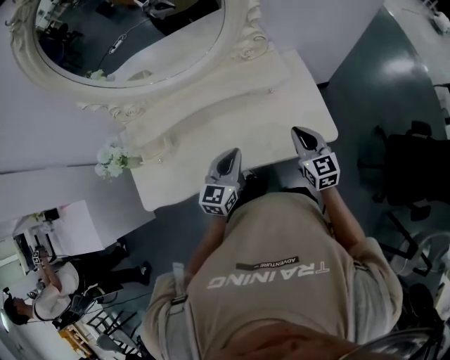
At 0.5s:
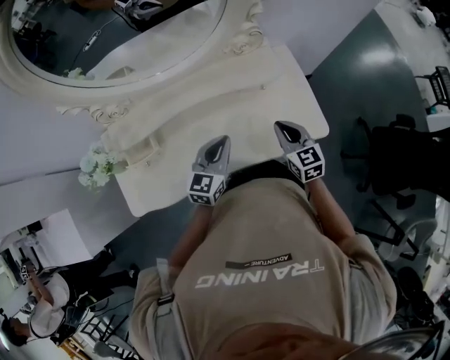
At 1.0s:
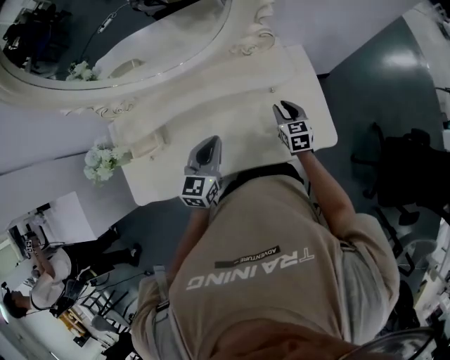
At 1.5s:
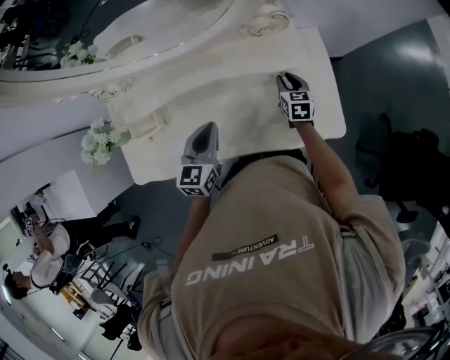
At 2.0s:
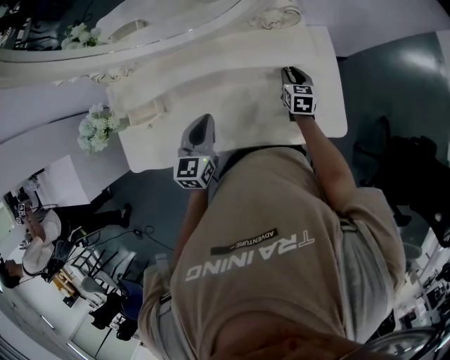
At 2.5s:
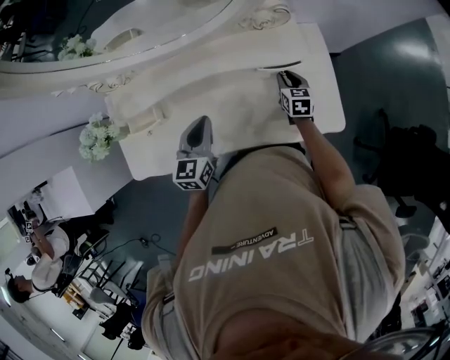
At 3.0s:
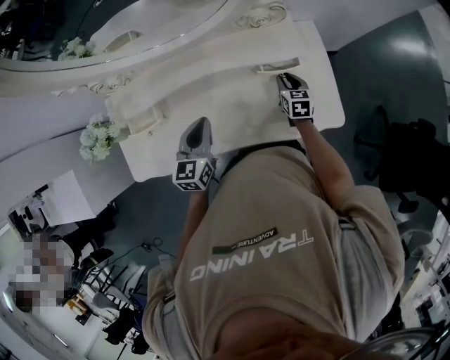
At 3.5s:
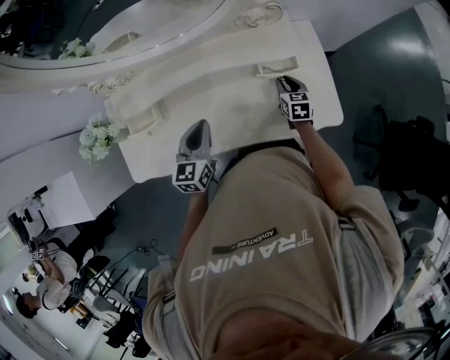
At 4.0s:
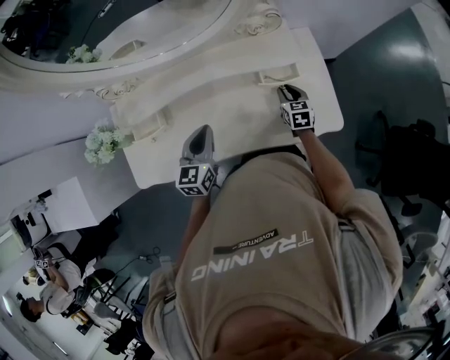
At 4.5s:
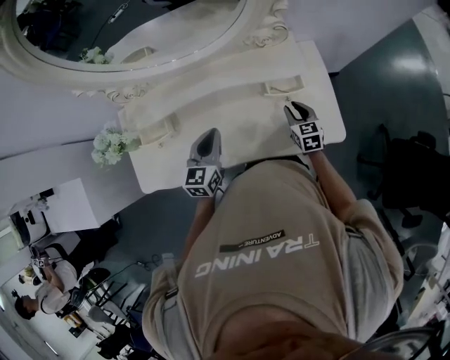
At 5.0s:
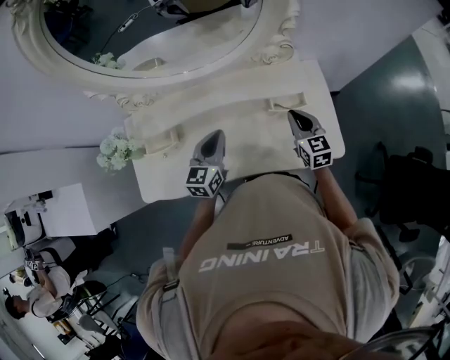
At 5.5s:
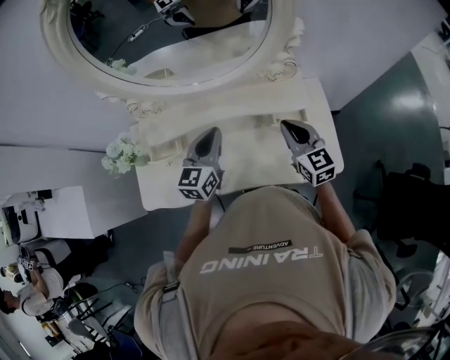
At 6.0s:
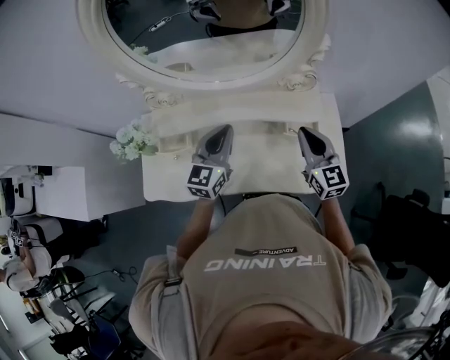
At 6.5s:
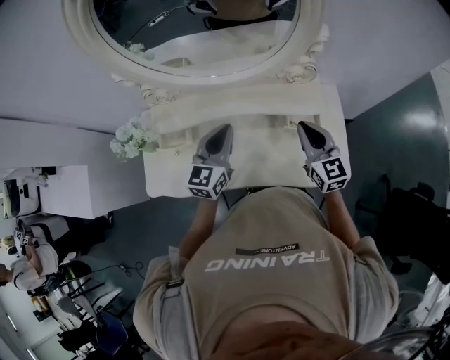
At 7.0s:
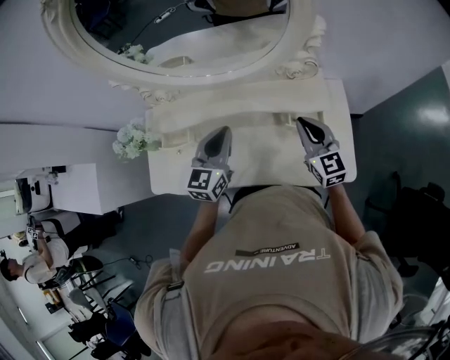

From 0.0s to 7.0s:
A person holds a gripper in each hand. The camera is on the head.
From 0.0s to 2.0s: The left gripper travels to the left and forward by some 10 cm, while the right gripper shifts about 30 cm forward and downward, swivels about 20 degrees, and opens up.
From 2.0s to 3.5s: The right gripper shifts approximately 5 cm backward.
From 3.5s to 5.0s: The left gripper moves approximately 5 cm. The right gripper moves upward, roughly 15 cm, rotates roughly 20 degrees, and closes up.
From 5.0s to 7.0s: Both grippers travel together upward, about 5 cm.

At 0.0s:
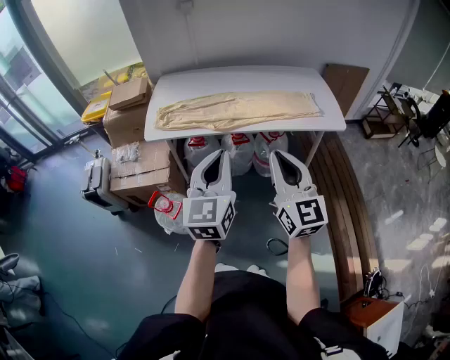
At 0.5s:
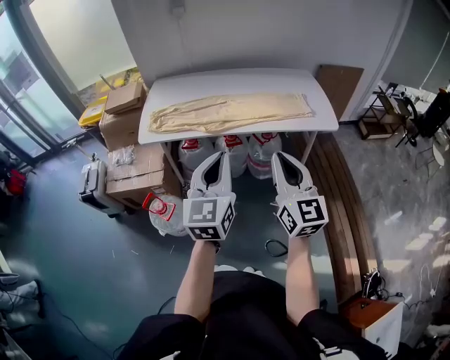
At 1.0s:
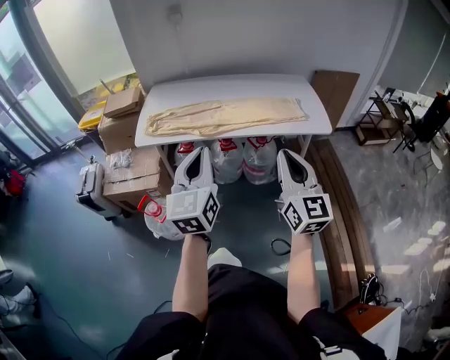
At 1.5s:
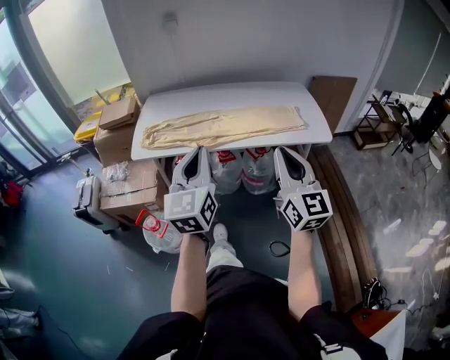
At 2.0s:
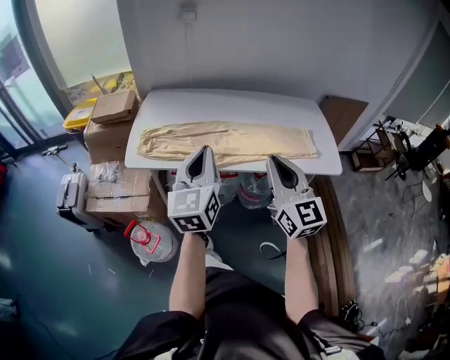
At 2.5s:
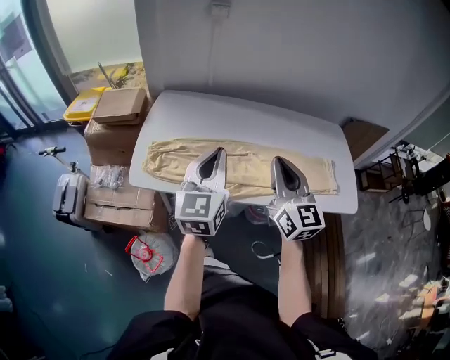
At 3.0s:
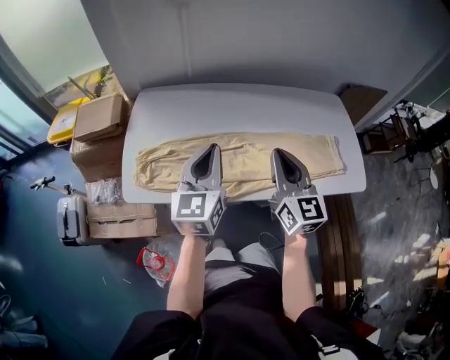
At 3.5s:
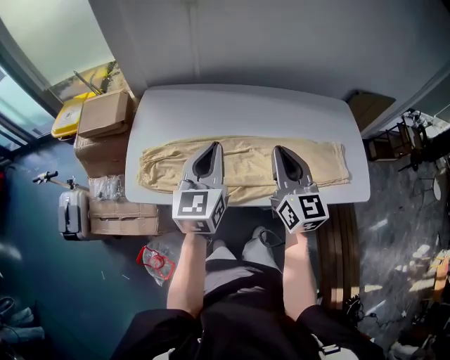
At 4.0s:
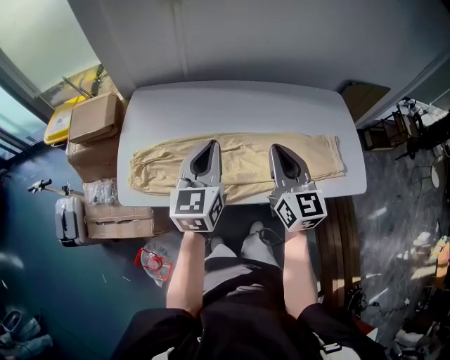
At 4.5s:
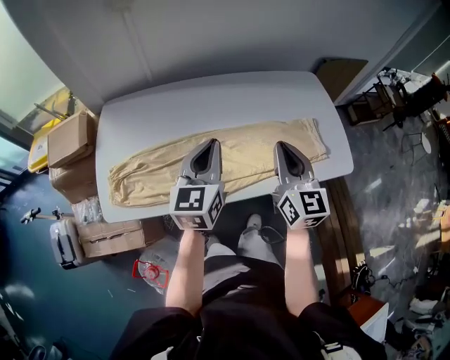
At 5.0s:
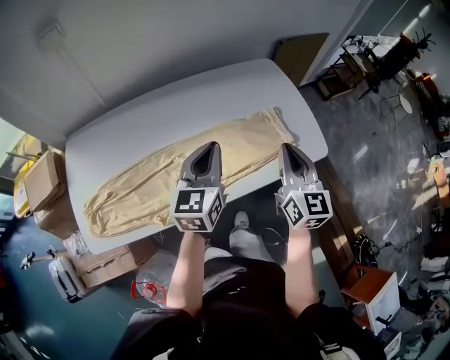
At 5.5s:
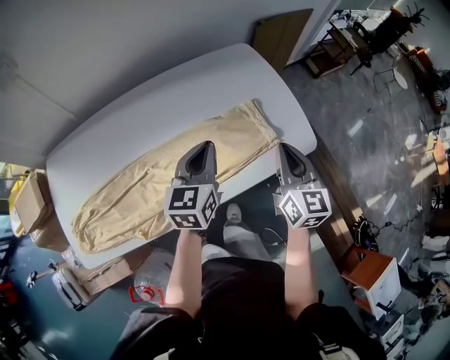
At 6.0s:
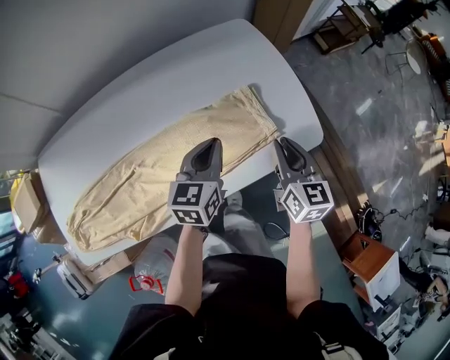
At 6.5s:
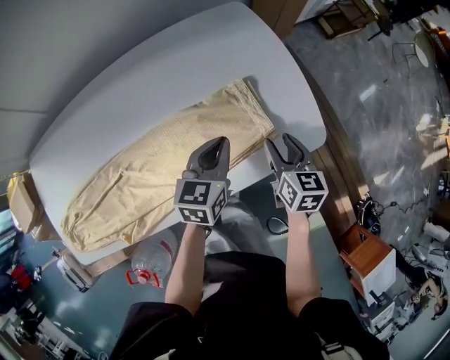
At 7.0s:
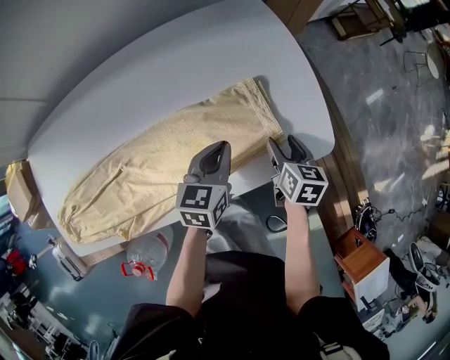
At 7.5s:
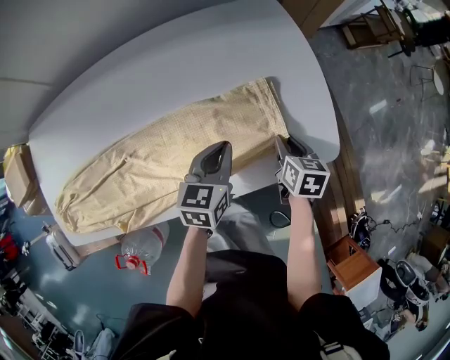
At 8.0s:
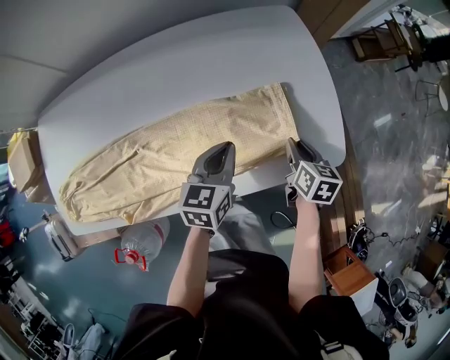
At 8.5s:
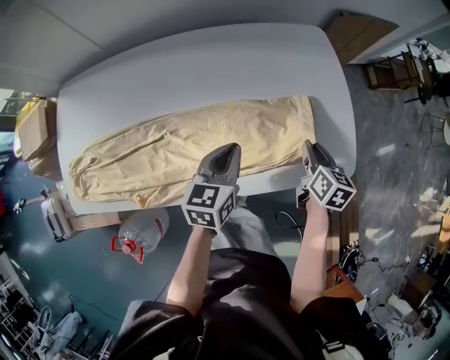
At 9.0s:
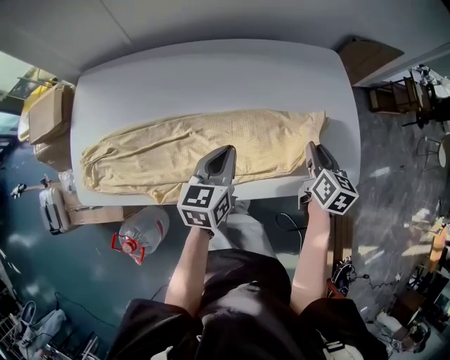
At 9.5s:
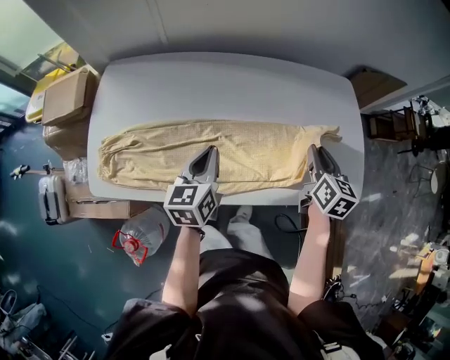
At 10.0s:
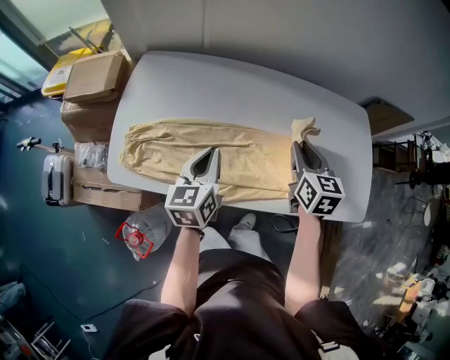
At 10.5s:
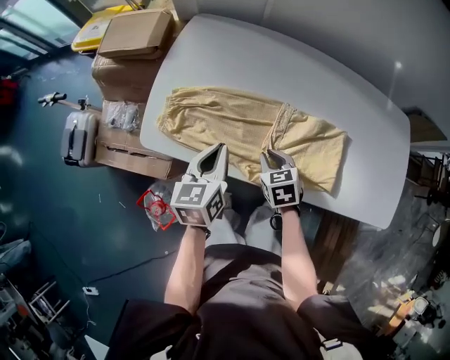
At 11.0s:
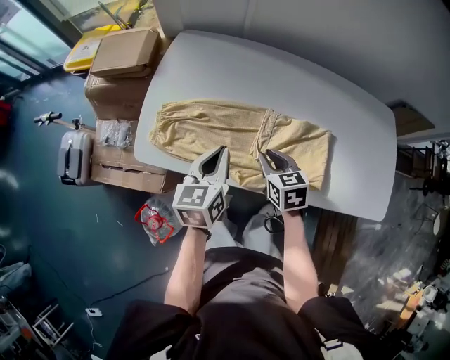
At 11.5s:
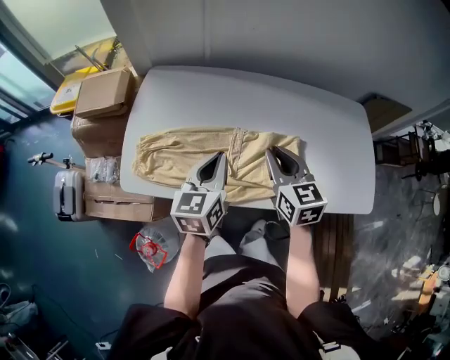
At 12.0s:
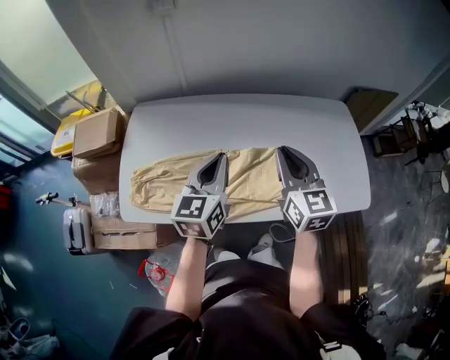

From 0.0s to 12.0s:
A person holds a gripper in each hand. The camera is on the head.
From 0.0s to 2.0s: The grippers both shift forward by approximately 20 cm.
From 2.0s to 4.0s: Both grippers move forward, roughly 25 cm.
From 4.0s to 6.0s: The left gripper shifts by approximately 40 cm, and turns by about 40 degrees. The right gripper ends up about 40 cm from where it was, and changes its angle by some 30 degrees.
From 6.0s to 8.0s: The left gripper is displaced downward by some 5 cm, while the right gripper travels downward by about 15 cm, swivels approximately 30 degrees, and opens, then closes again.
From 8.0s to 10.0s: The left gripper goes approximately 40 cm to the left, and turns by roughly 30 degrees; the right gripper goes some 40 cm to the left and upward, and rotates roughly 40 degrees.
From 10.0s to 12.0s: The left gripper goes roughly 15 cm upward and to the right. Meanwhile the right gripper moves upward and backward, approximately 10 cm.

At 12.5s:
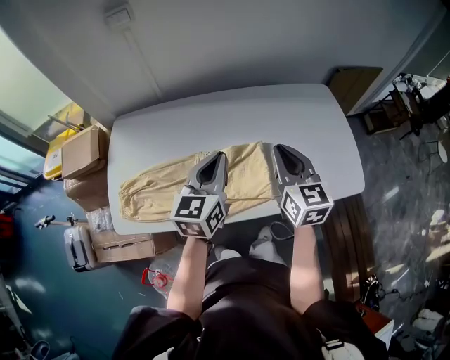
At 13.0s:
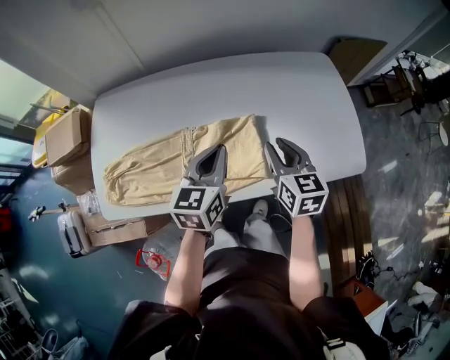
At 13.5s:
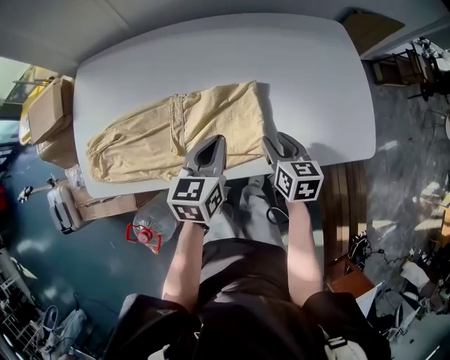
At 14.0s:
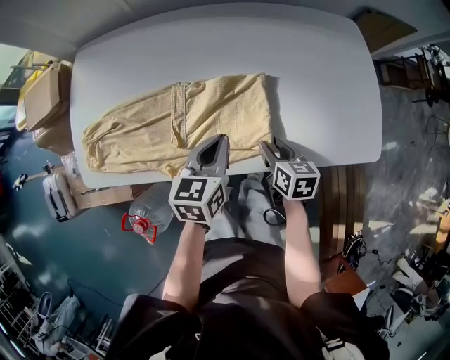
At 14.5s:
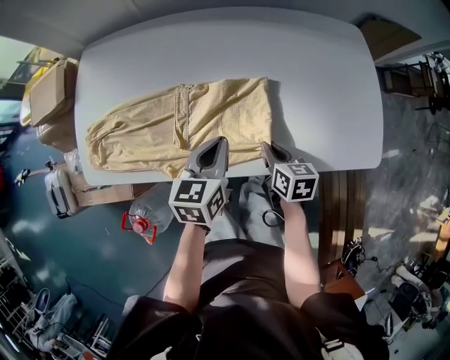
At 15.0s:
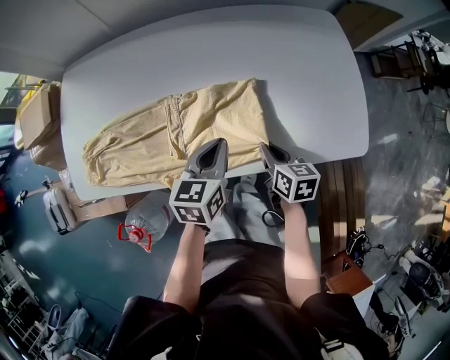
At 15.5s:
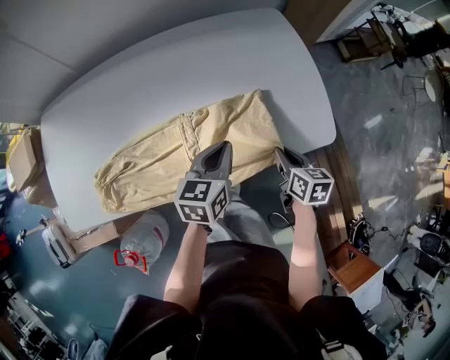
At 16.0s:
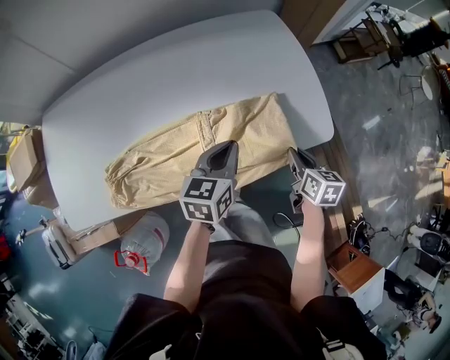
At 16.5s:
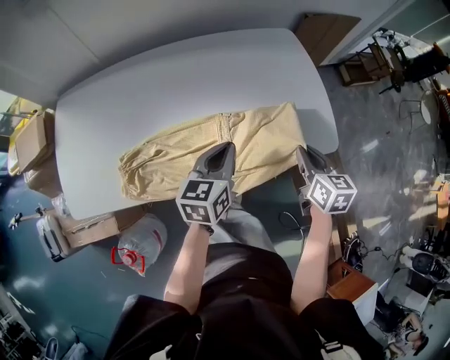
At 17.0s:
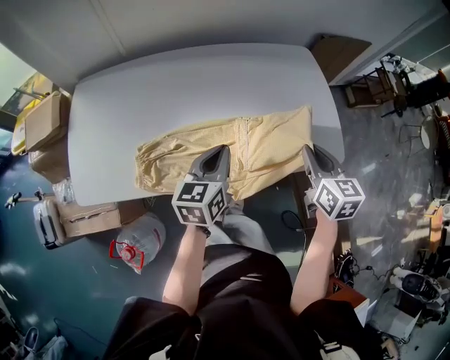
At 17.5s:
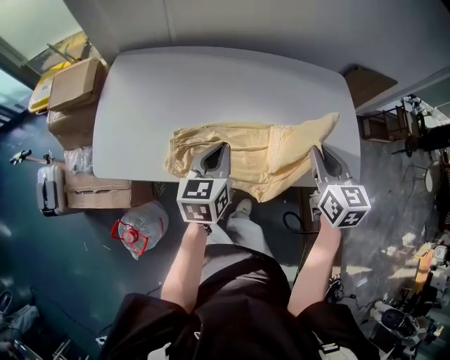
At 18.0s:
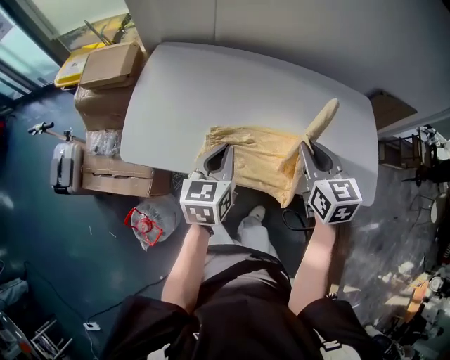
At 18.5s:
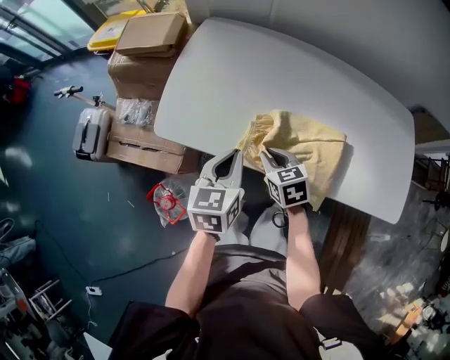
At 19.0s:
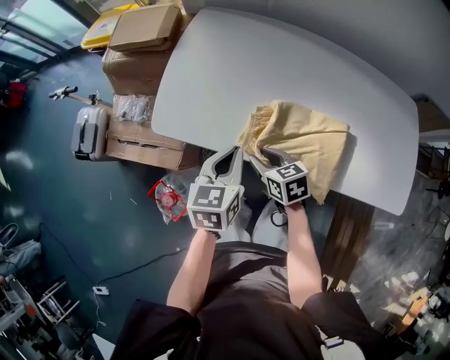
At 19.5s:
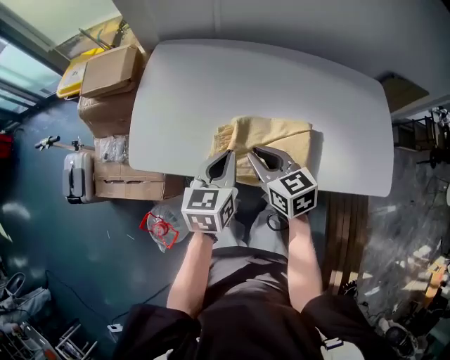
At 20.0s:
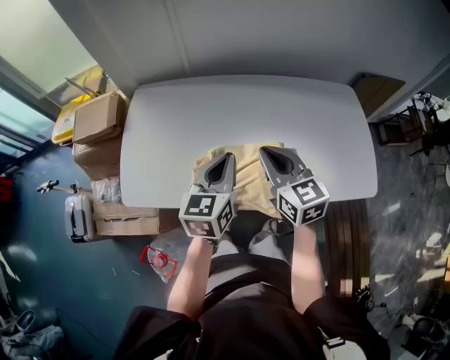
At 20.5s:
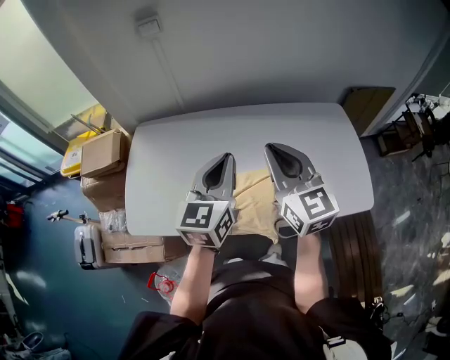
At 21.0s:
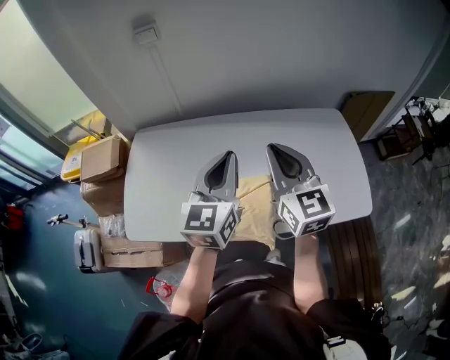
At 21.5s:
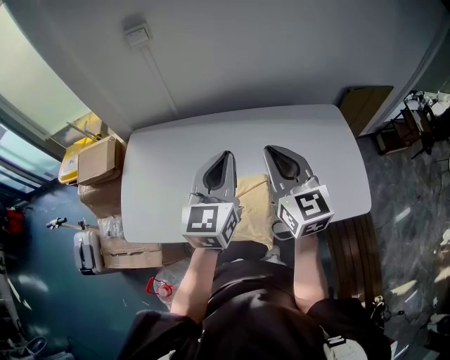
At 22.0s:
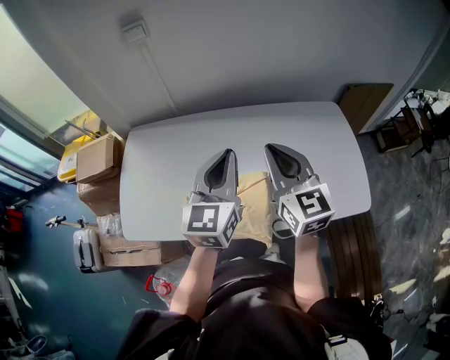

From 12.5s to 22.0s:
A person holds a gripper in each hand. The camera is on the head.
From 12.5s to 14.5s: The left gripper travels downward by roughly 20 cm, and turns by approximately 20 degrees. The right gripper shifts some 30 cm downward, angles its fingers downward, by about 30 degrees, and opens and closes again.
From 14.5s to 16.5s: The right gripper heads to the right and upward, covering some 25 cm, and swivels approximately 20 degrees, while the left gripper travels to the right by about 15 cm.
From 16.5s to 18.0s: The left gripper shifts by some 30 cm, and rotates about 30 degrees. The right gripper moves some 35 cm, and rotates some 30 degrees.
From 18.0s to 20.0s: The left gripper travels to the right and upward by some 10 cm, while the right gripper travels downward and back again, about 20 cm each way, and opens, then closes once more.
From 20.0s to 22.0s: The right gripper is displaced upward and to the right by roughly 15 cm. The left gripper shifts about 15 cm upward, to the right and forward.
